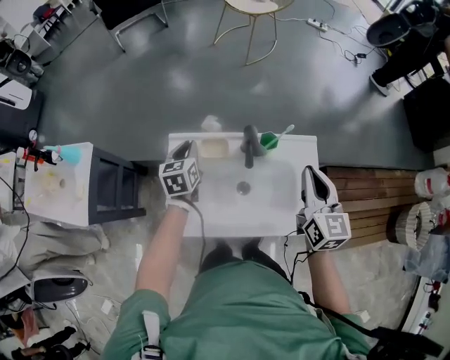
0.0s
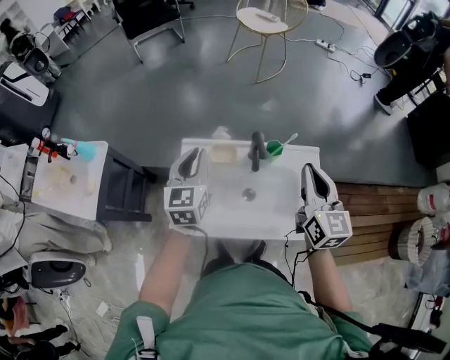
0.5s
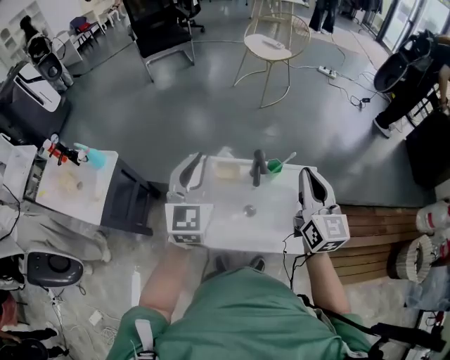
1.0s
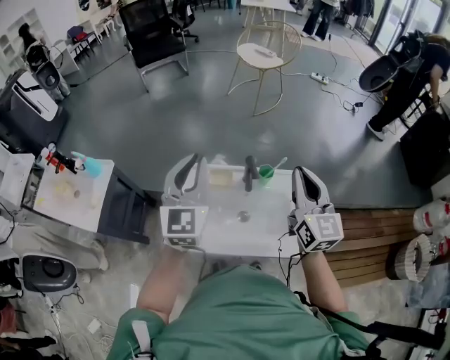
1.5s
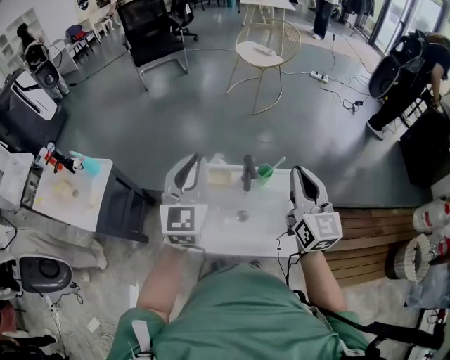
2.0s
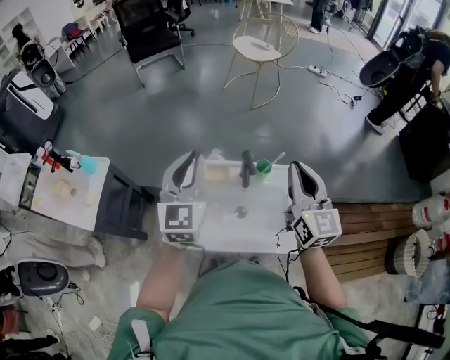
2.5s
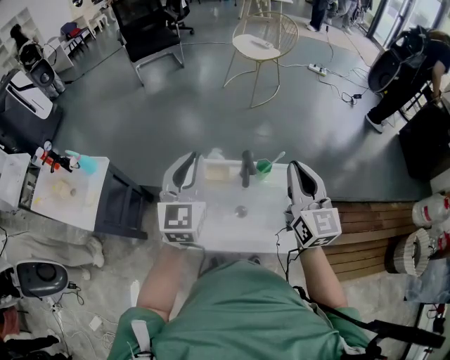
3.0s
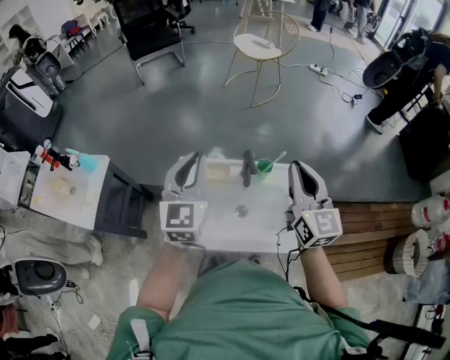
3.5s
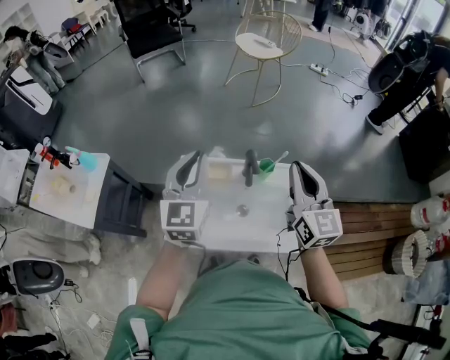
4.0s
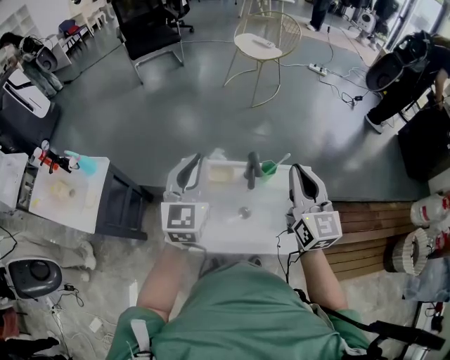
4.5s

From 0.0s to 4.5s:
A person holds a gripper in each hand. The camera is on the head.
From 0.0s to 2.0s: The right gripper moves upward, some 15 cm. Meanwhile the left gripper moves upward and backward, some 30 cm, and points its fingers roughly 30 degrees further upward.
From 2.0s to 4.5s: The grippers stay close to where they were, moving slightly.

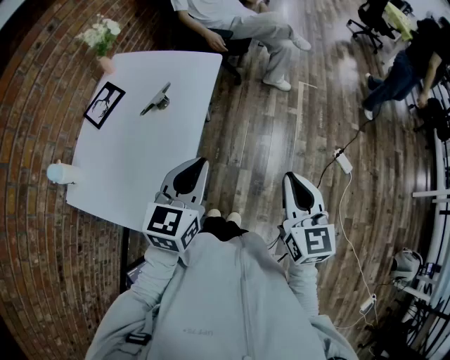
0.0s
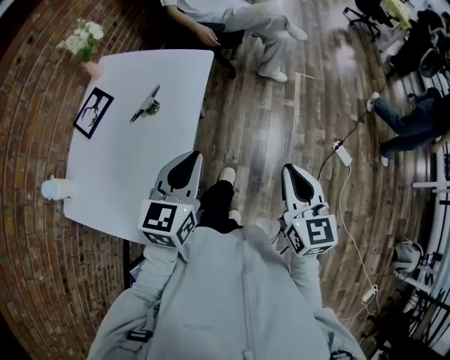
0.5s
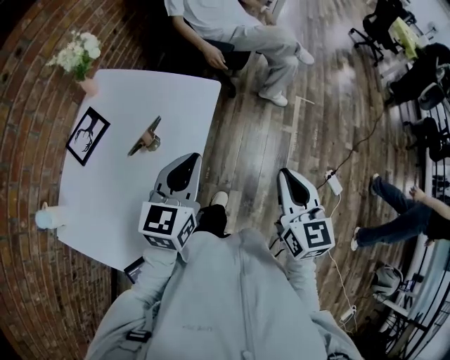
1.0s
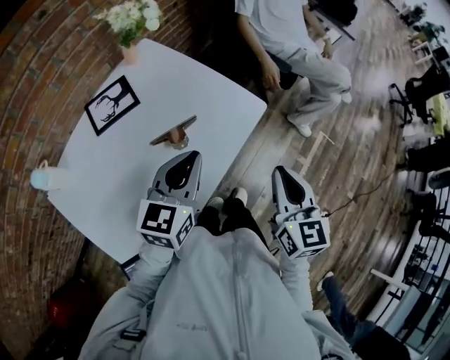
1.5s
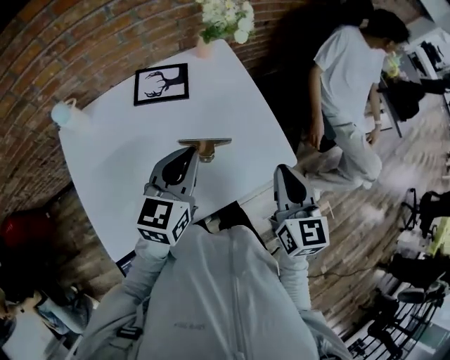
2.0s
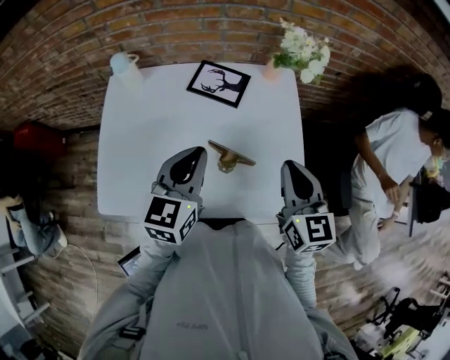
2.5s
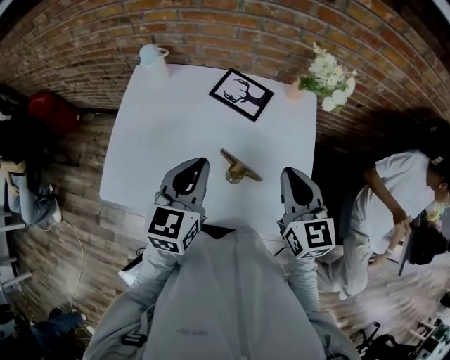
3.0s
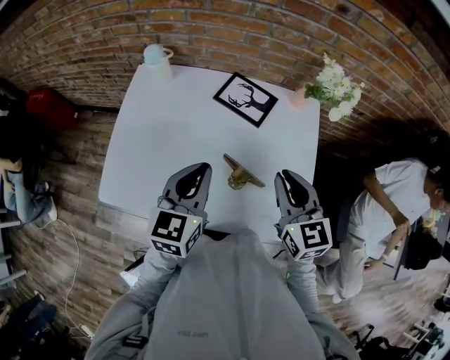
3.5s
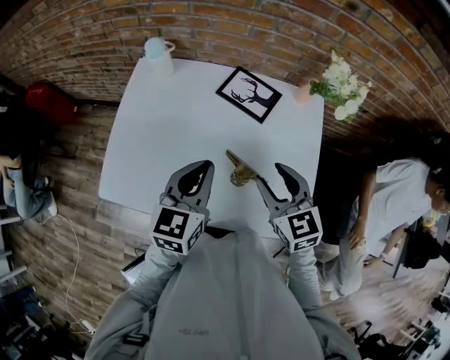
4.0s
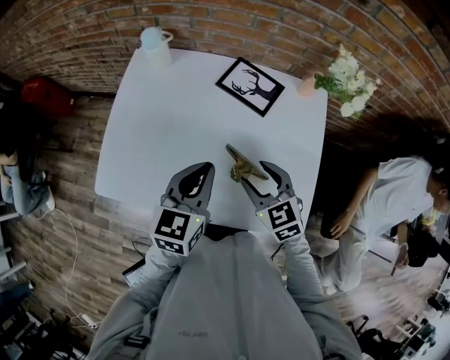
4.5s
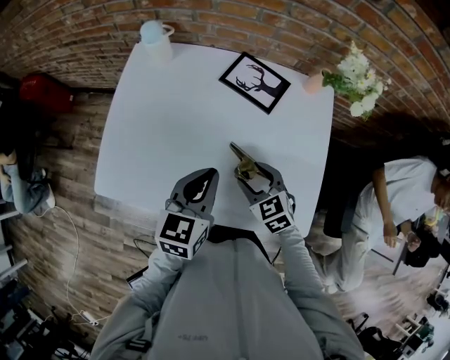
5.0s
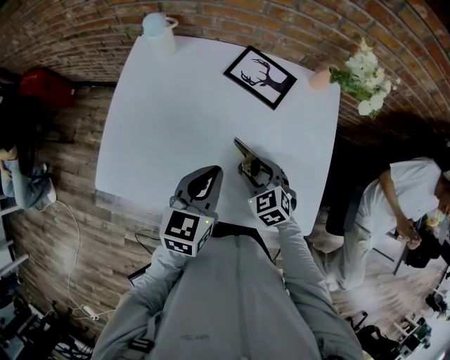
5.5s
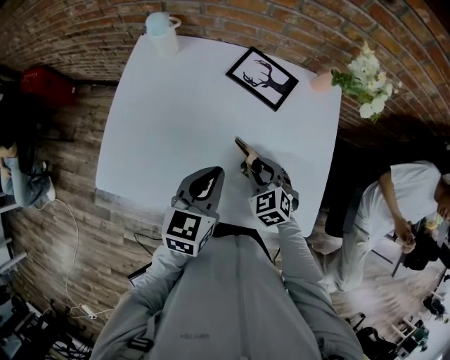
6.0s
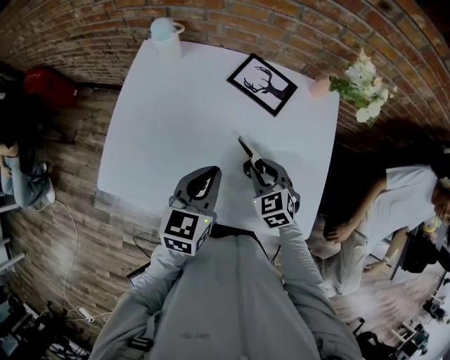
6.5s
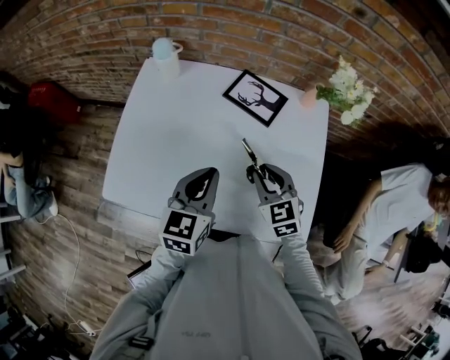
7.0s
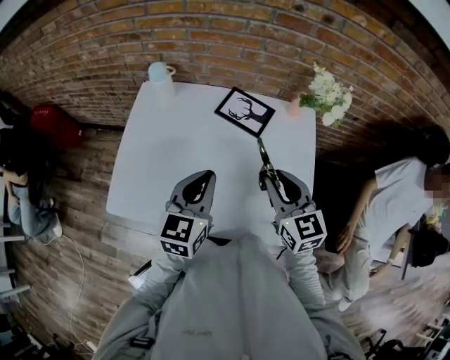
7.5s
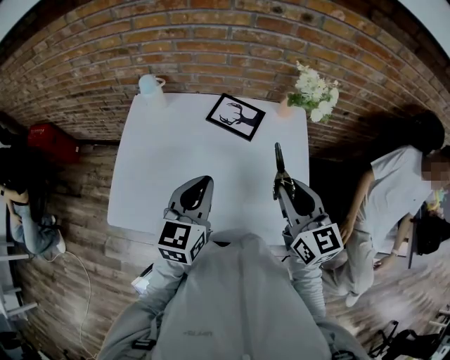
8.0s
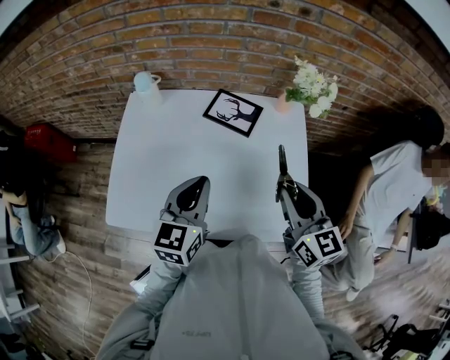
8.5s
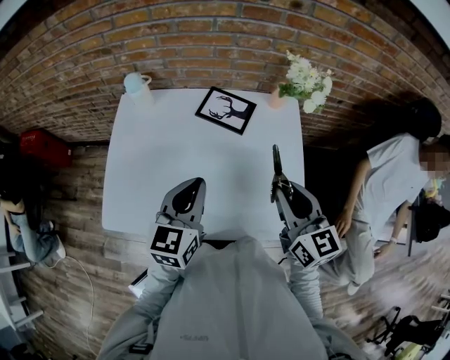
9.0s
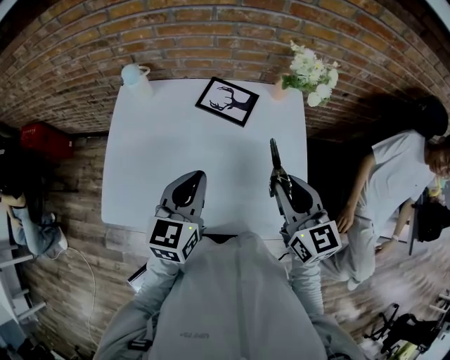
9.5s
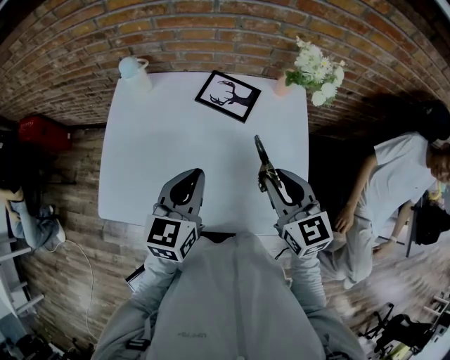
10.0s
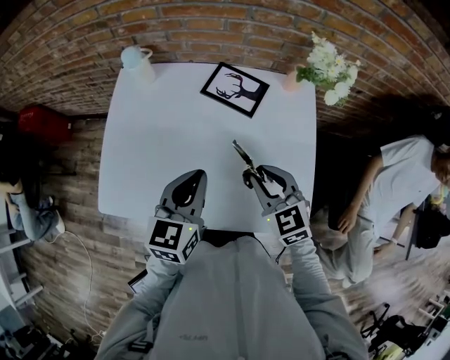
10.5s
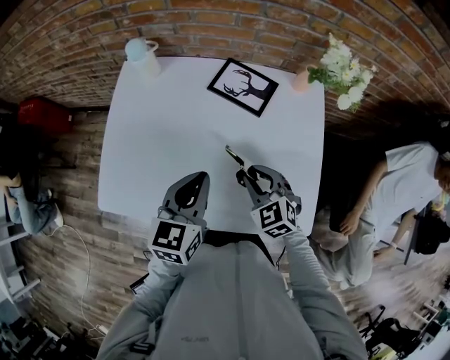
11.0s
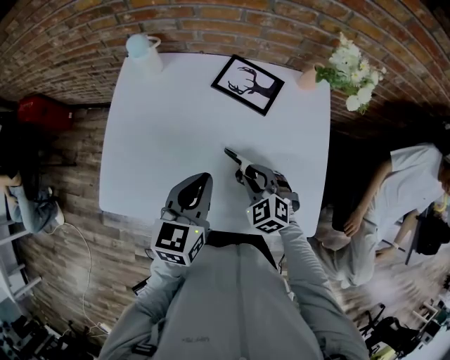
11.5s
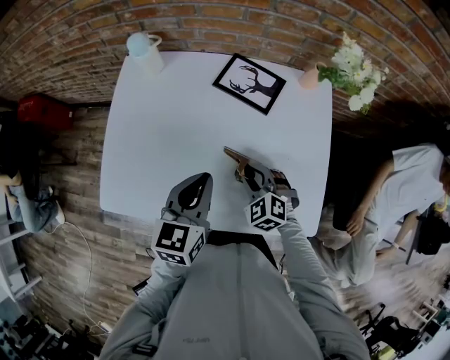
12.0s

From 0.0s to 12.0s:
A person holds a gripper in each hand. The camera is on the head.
From 0.0s to 2.0s: The right gripper moves about 50 cm, and turns by roughly 50 degrees, while the left gripper changes place by roughly 35 cm, and swivels some 50 degrees.
From 2.0s to 4.0s: The left gripper shifts by about 5 cm, and changes its angle by roughly 40 degrees. The right gripper changes place by approximately 20 cm, rotates approximately 60 degrees, and opens up.
From 4.0s to 6.0s: The right gripper is displaced downward by about 20 cm, and swivels some 30 degrees. The left gripper shifts roughly 10 cm downward.
From 6.0s to 8.0s: The right gripper shifts about 25 cm upward, and points its fingers about 40 degrees further upward. The left gripper heads upward, covering approximately 10 cm.
From 8.0s to 10.0s: The right gripper changes place by some 5 cm.
From 10.0s to 12.0s: The left gripper shifts some 5 cm downward; the right gripper goes roughly 25 cm downward and to the left, and swivels approximately 50 degrees.

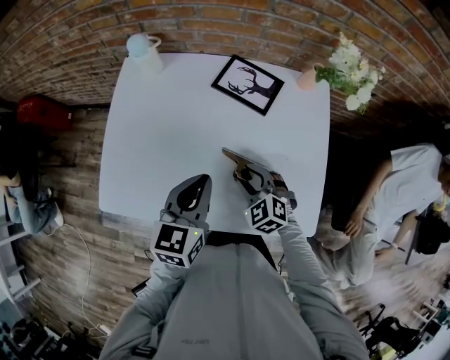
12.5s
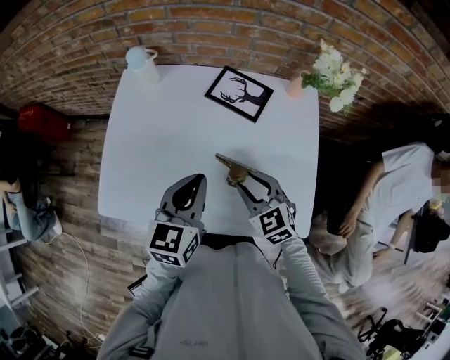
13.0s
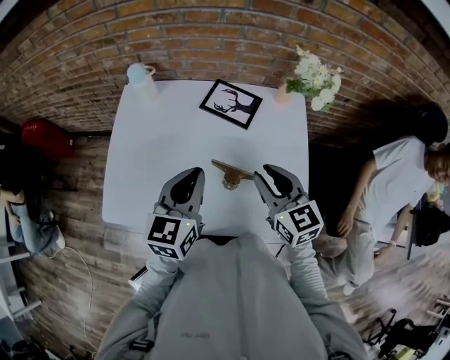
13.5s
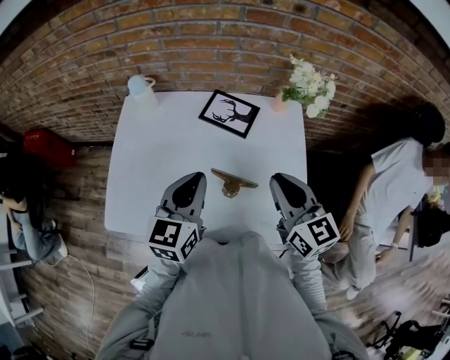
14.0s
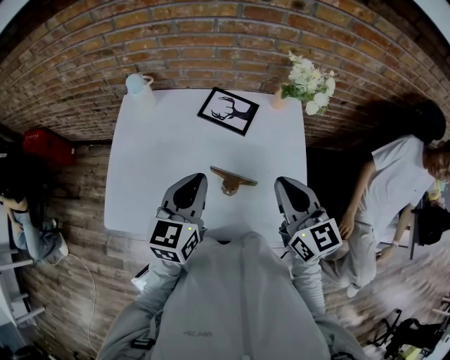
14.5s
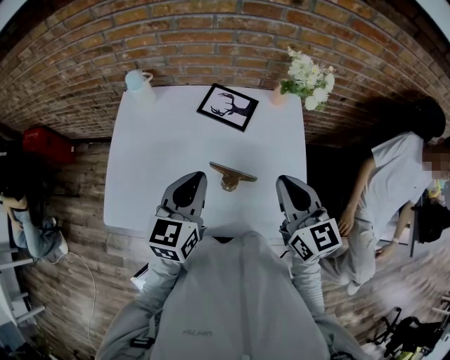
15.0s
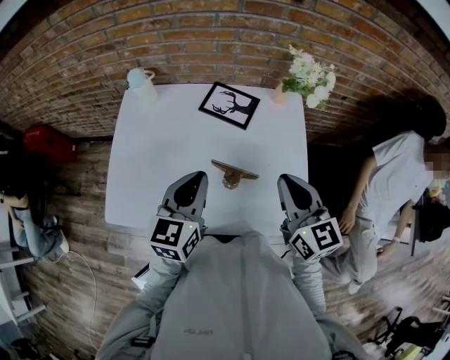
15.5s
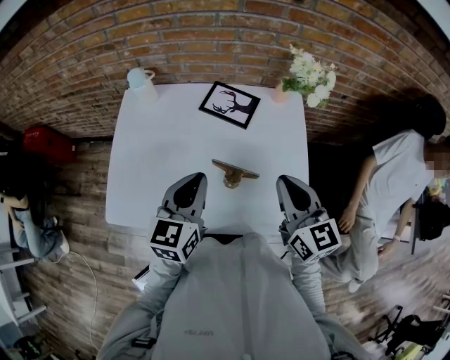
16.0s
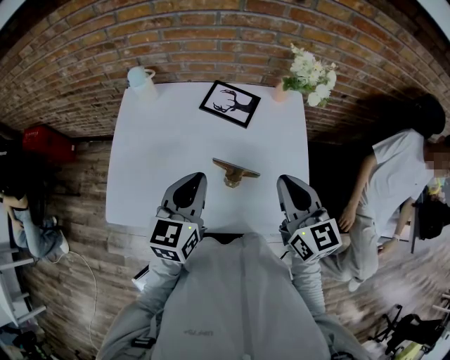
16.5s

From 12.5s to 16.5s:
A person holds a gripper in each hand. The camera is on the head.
From 12.5s to 14.5s: The right gripper heads upward and to the right, covering roughly 25 cm, angles its fingers upward, by some 40 degrees, and closes up. The left gripper moves upward, roughly 5 cm.
From 14.5s to 16.5s: The grippers stay close to where they were, moving slightly.

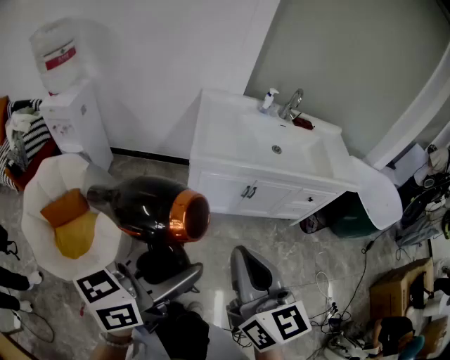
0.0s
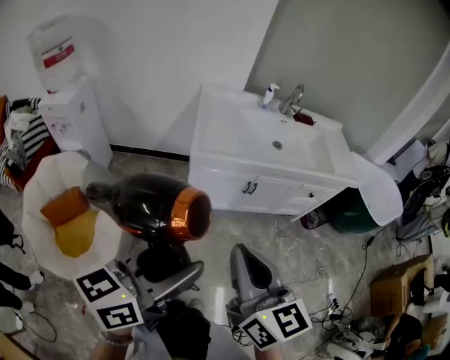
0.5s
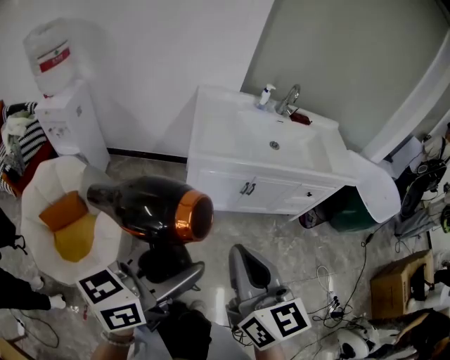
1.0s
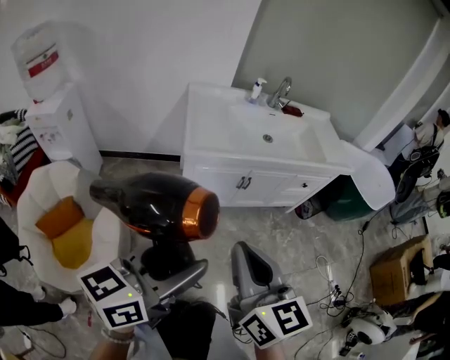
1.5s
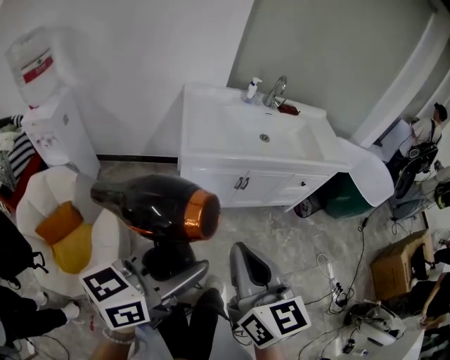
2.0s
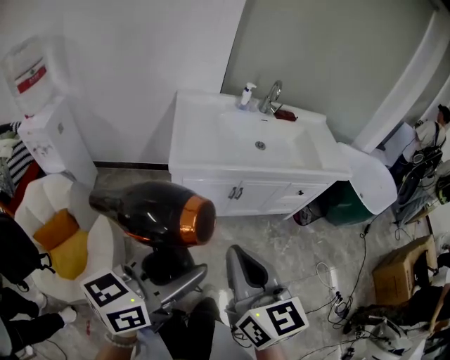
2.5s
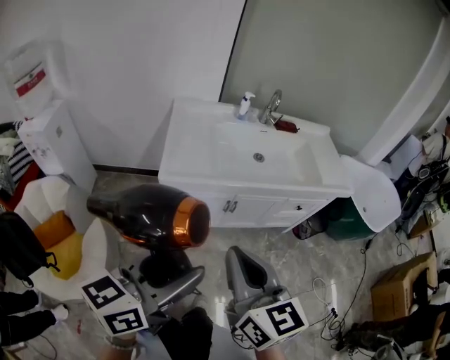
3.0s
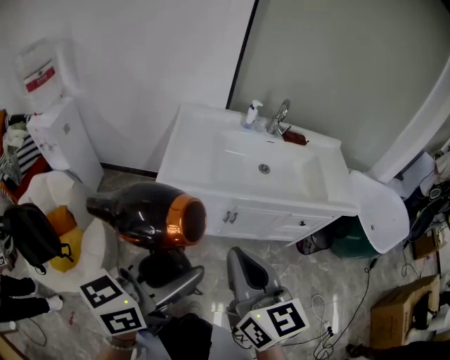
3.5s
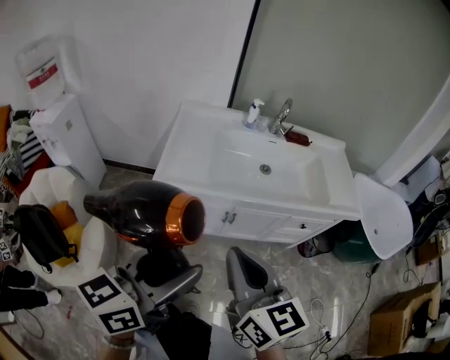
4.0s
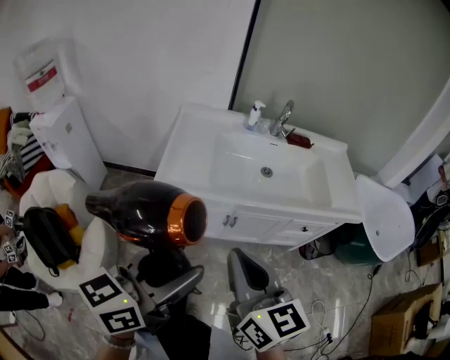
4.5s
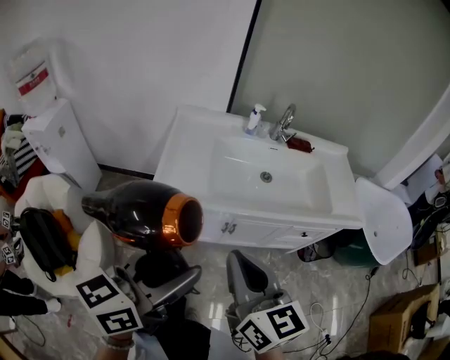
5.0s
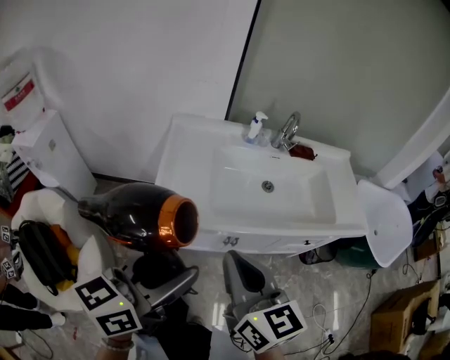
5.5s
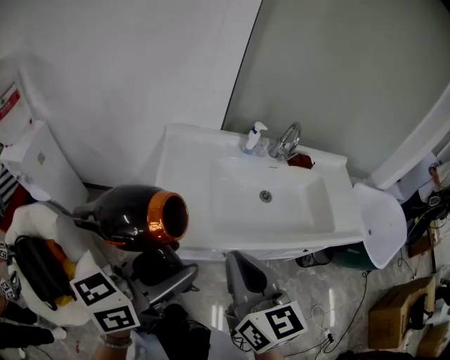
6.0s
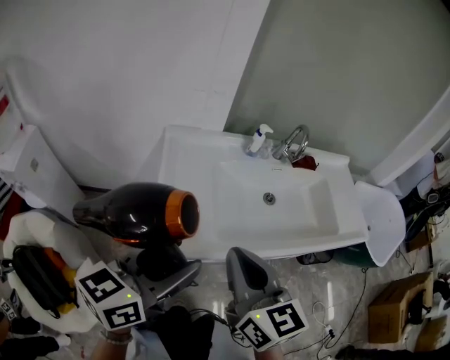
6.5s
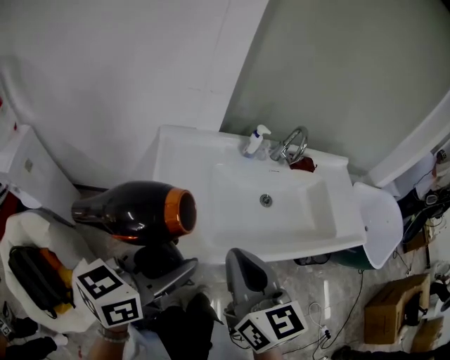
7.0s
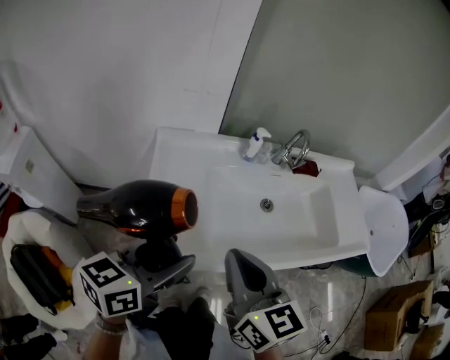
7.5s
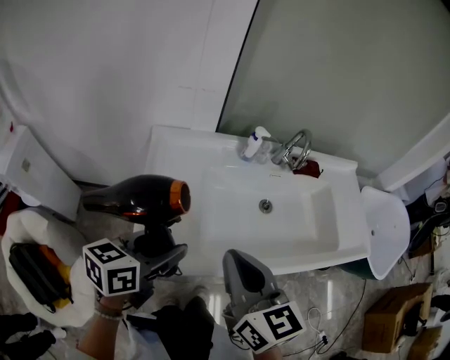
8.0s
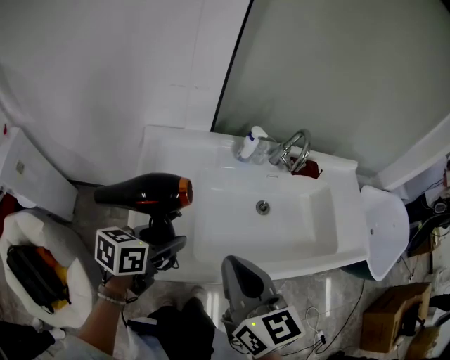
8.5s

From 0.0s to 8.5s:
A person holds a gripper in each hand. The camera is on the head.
From 0.0s to 2.0s: The grippers stay close to where they were, moving slightly.
From 2.0s to 4.0s: Both grippers travel together forward and to the right, some 25 cm.
From 4.0s to 6.5s: The grippers both shift forward and to the left by about 30 cm.
From 6.5s to 8.5s: The right gripper travels forward by approximately 10 cm. The left gripper moves downward and forward, roughly 25 cm, and changes its angle by roughly 20 degrees.
